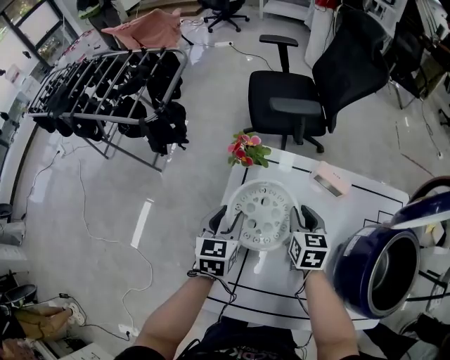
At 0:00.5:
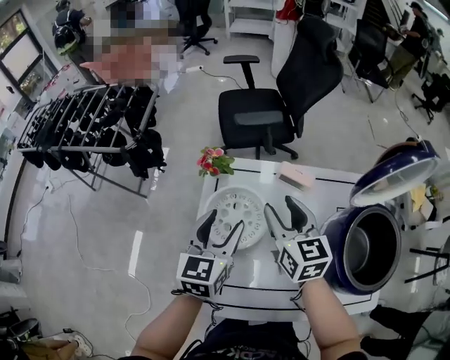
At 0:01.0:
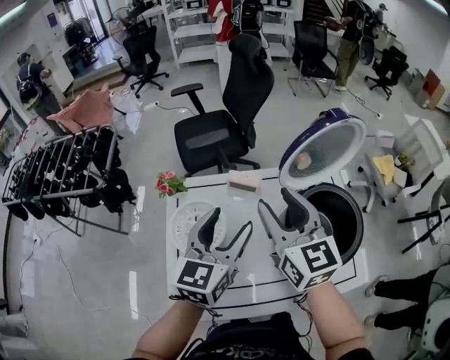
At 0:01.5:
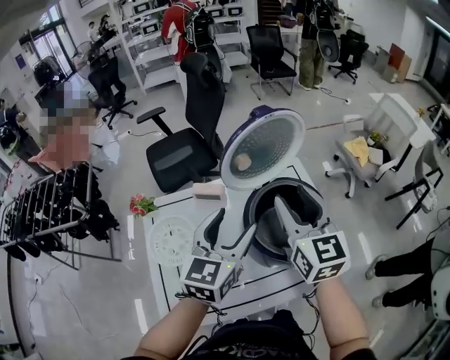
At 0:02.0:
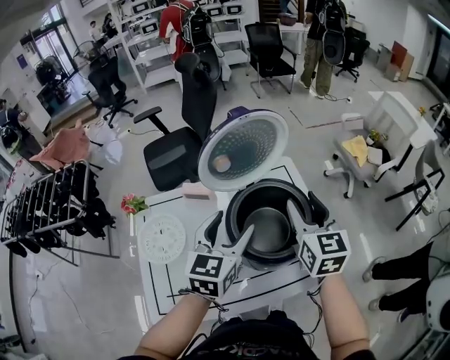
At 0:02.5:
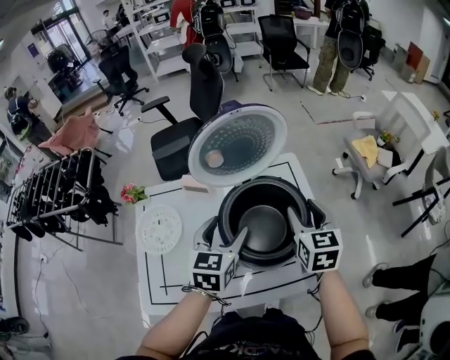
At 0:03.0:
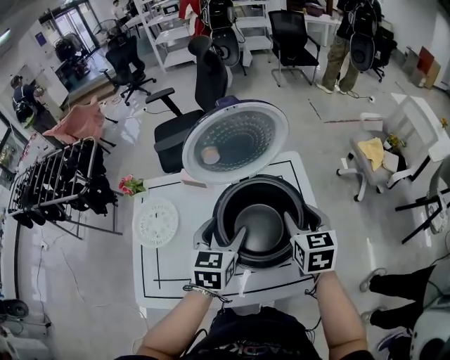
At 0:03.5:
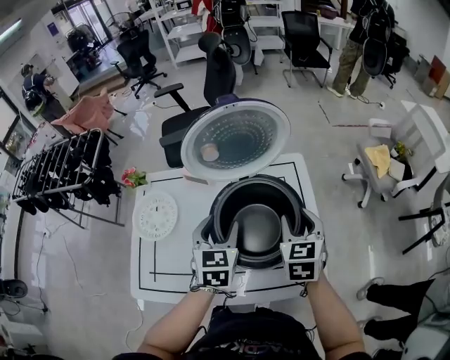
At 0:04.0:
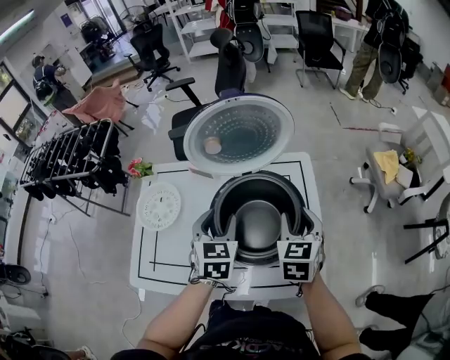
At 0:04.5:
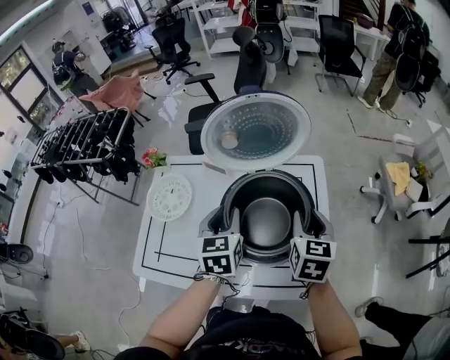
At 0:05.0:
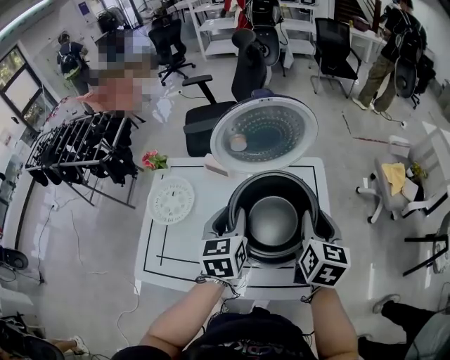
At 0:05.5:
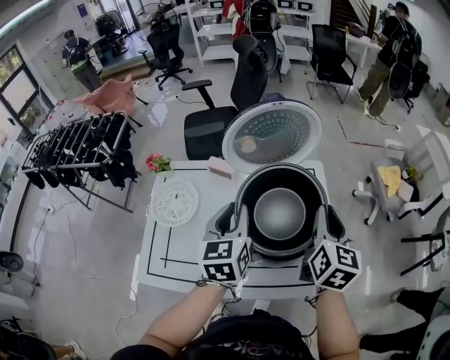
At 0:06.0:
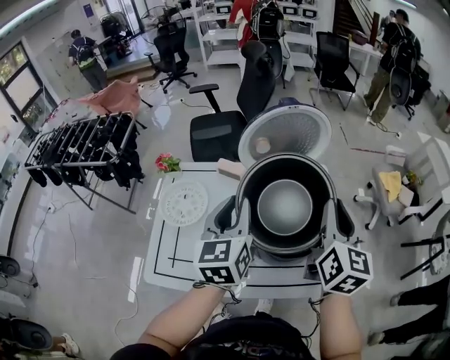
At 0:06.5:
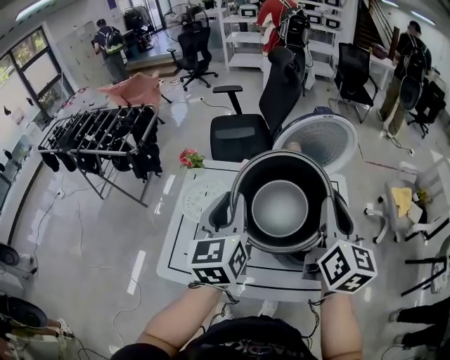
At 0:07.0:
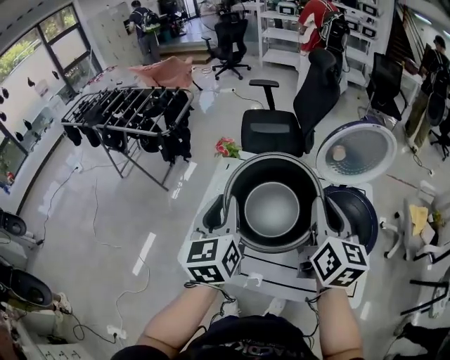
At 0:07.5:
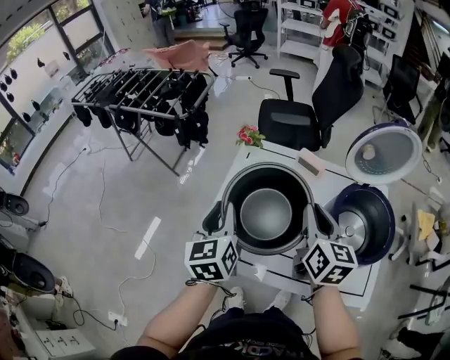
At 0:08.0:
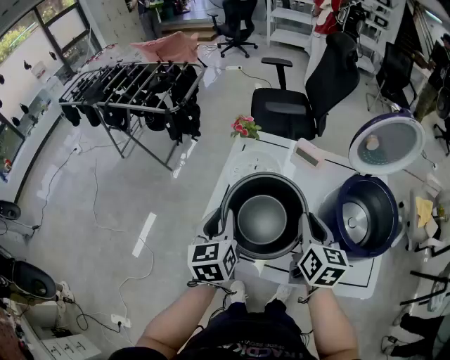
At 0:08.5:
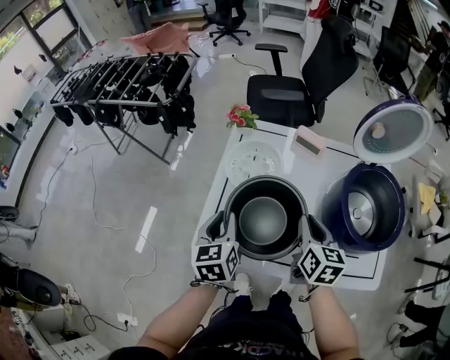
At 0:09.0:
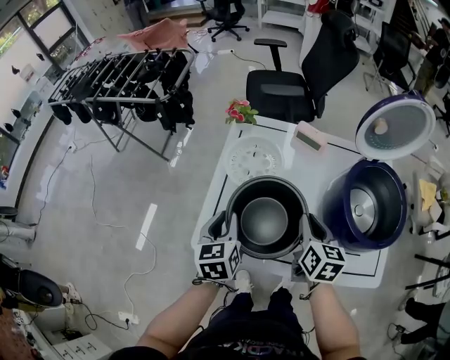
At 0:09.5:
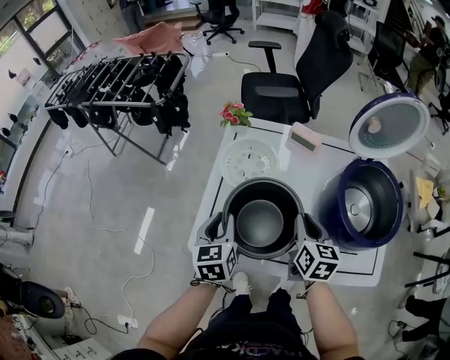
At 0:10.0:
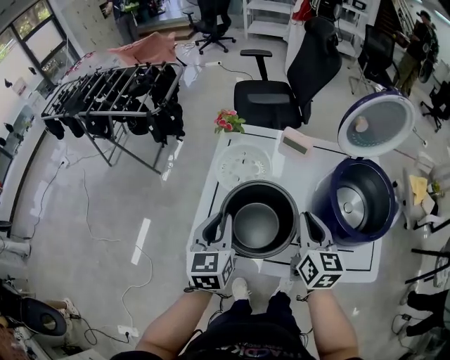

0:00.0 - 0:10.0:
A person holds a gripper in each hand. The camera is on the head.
0:00.0 - 0:02.0: The pair of grippers is taken about 40 cm. The left gripper swivels approximately 40 degrees, and opens. Meanwhile the right gripper rotates roughly 30 degrees, and opens up.
0:02.0 - 0:04.0: Both grippers travel together downward, roughly 10 cm. The left gripper changes its angle by roughly 30 degrees. Meanwhile the right gripper rotates about 20 degrees.
0:04.0 - 0:06.0: The two grippers go approximately 15 cm upward. The left gripper rotates roughly 30 degrees, and closes, while the right gripper swivels about 30 degrees, and closes its fingers.
0:06.0 - 0:08.0: The left gripper moves about 35 cm, and turns by approximately 20 degrees, while the right gripper moves approximately 35 cm, and swivels roughly 30 degrees.
0:08.0 - 0:10.0: The left gripper goes downward and returns, roughly 10 cm each way. The right gripper reaches approximately 10 cm downward, then returns.

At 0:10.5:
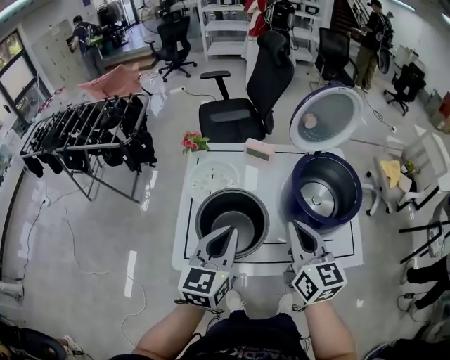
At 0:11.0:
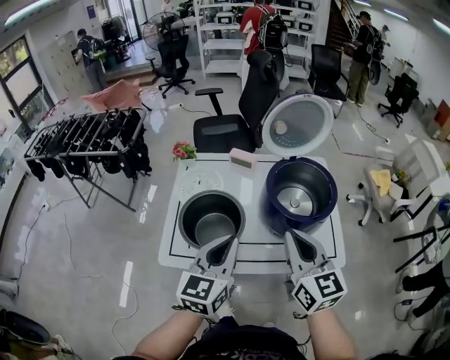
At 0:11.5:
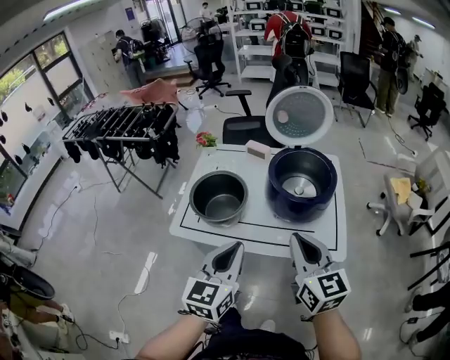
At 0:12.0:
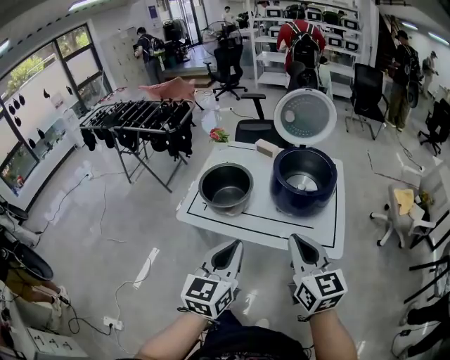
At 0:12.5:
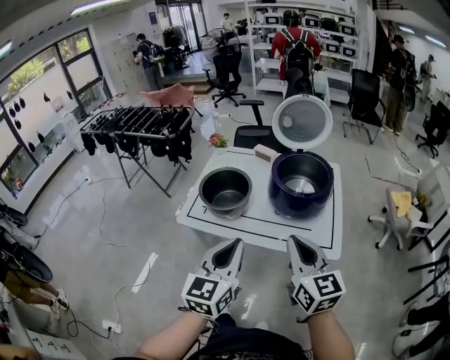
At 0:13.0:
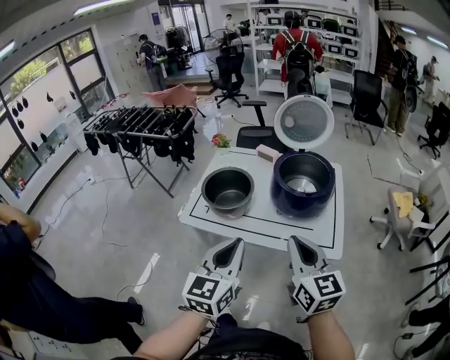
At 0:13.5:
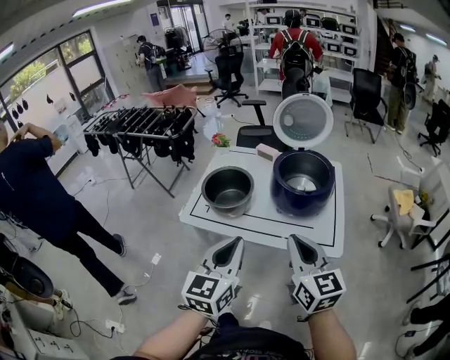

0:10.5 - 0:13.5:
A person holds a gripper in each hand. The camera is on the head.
0:10.5 - 0:12.0: The two grippers go some 30 cm backward and to the right.
0:12.0 - 0:13.5: The grippers make only small movements.

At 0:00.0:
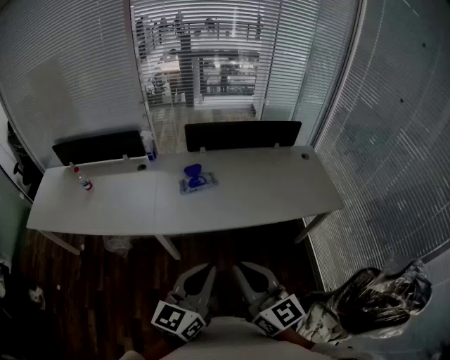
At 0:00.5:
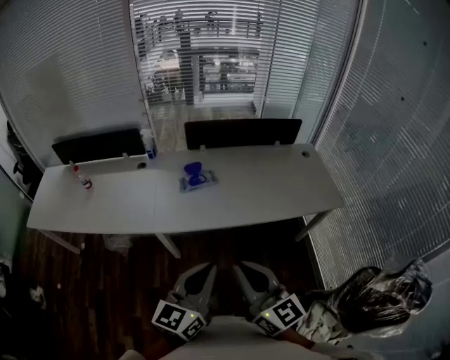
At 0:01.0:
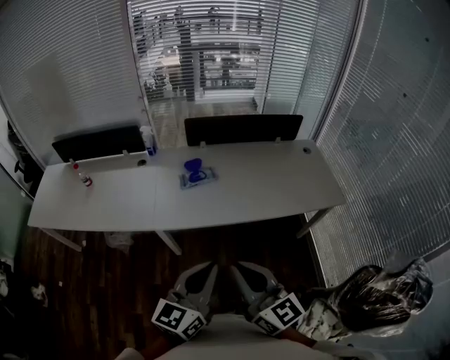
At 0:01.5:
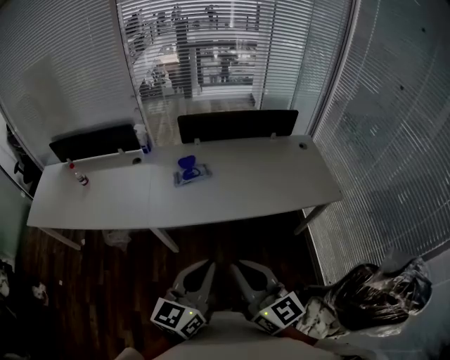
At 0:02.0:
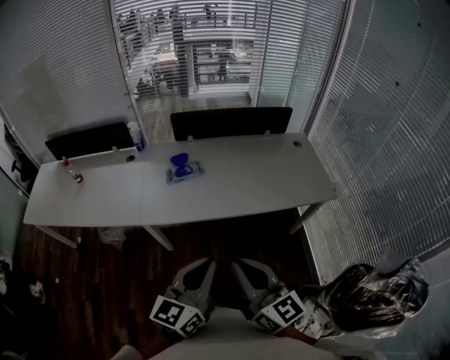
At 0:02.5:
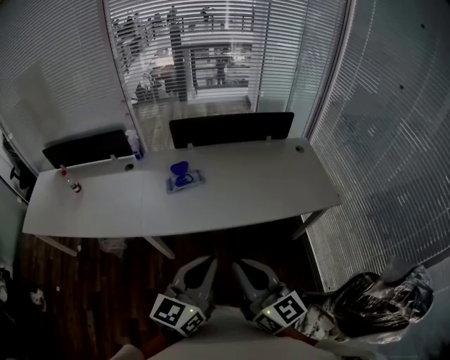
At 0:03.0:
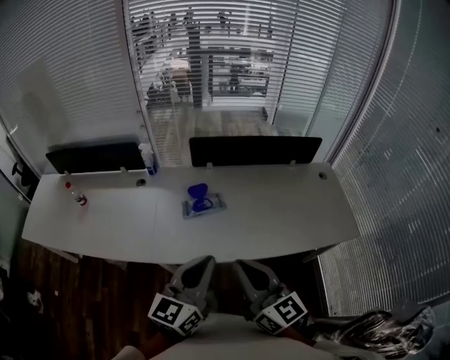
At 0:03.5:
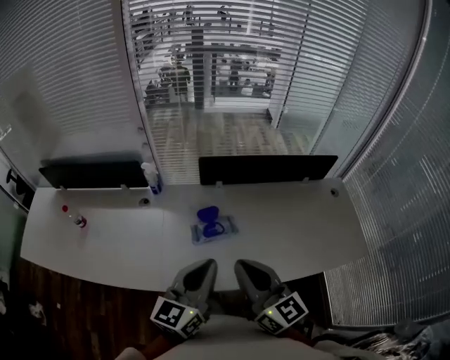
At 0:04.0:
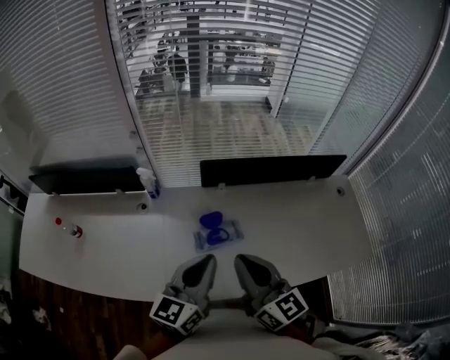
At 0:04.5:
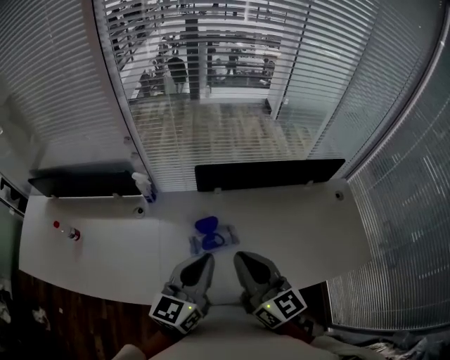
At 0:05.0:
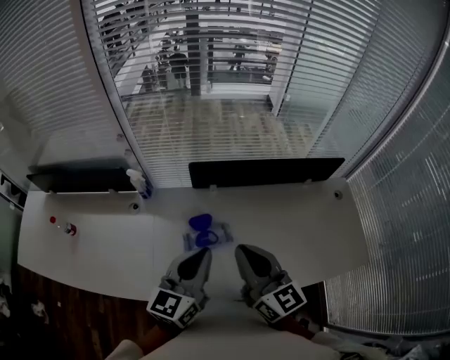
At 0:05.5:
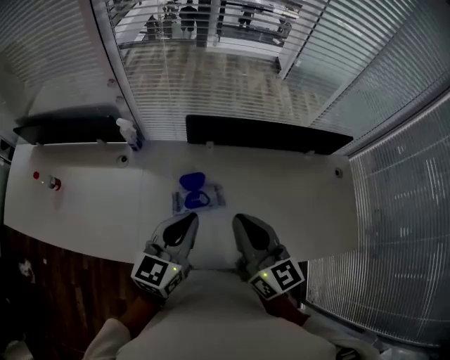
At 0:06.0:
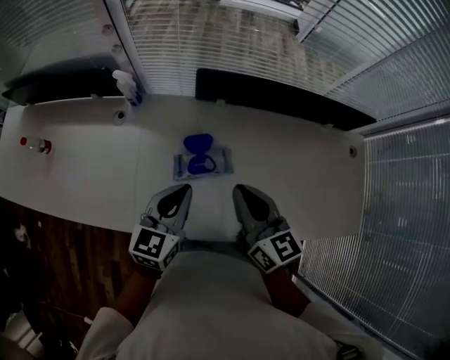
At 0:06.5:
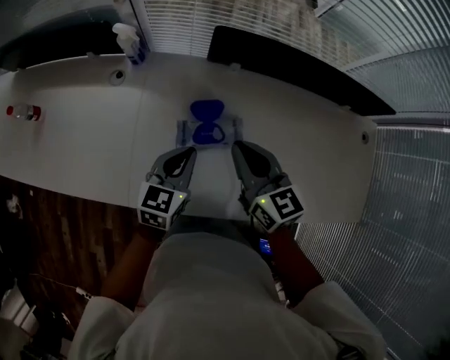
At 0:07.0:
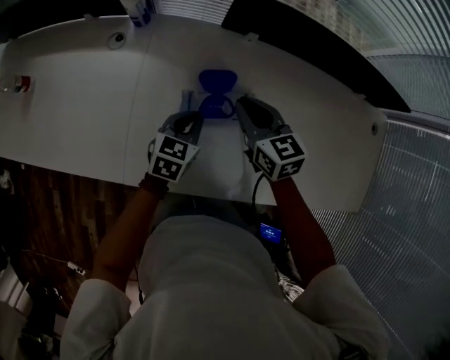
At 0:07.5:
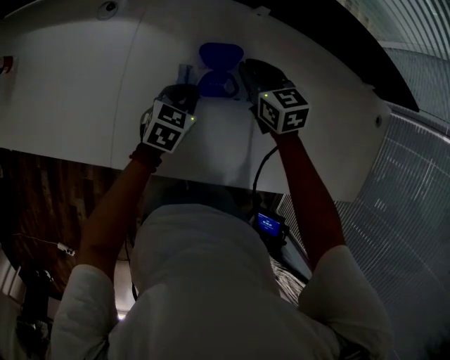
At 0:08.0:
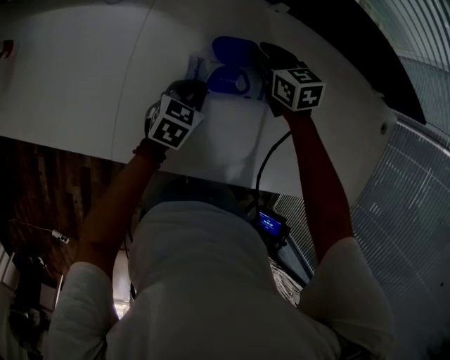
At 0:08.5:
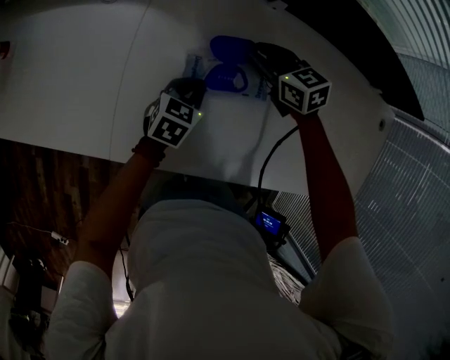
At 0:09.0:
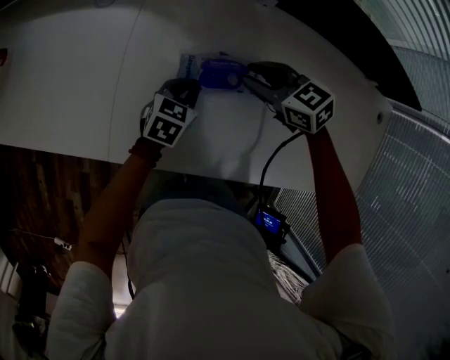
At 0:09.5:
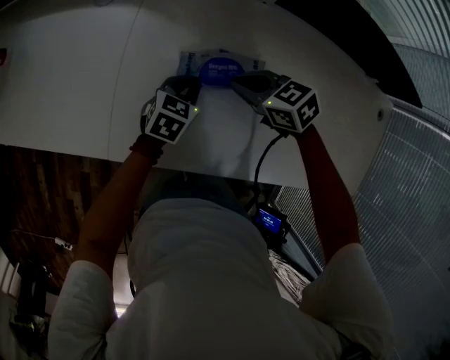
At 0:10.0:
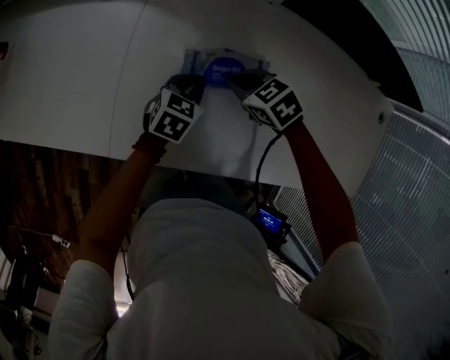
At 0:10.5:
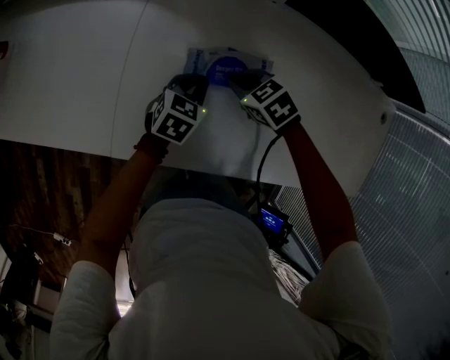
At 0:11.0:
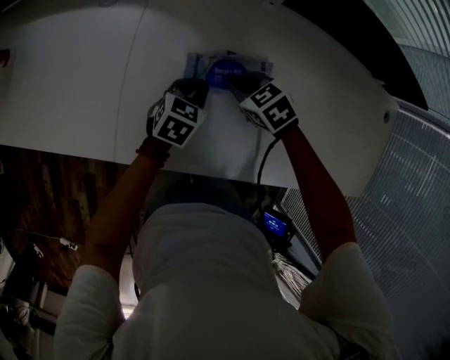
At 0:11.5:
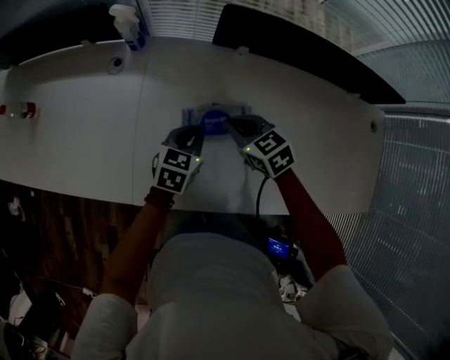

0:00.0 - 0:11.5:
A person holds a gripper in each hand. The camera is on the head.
0:00.0 - 0:02.0: The grippers both shift to the right by approximately 10 cm.
0:02.0 - 0:04.0: The two grippers travel together, forward and to the left, some 50 cm.
0:04.0 - 0:06.0: The left gripper travels downward and forward by approximately 15 cm. Meanwhile the right gripper is displaced downward, forward and to the right by some 15 cm.
0:06.0 - 0:07.5: The right gripper is displaced downward and forward by approximately 30 cm, and rotates some 30 degrees; the left gripper shifts some 25 cm downward, and turns by some 30 degrees.
0:07.5 - 0:09.5: The right gripper shifts some 10 cm backward, and rotates some 30 degrees.
0:09.5 - 0:11.5: The right gripper changes its angle by approximately 20 degrees; the left gripper heads upward, covering roughly 10 cm.

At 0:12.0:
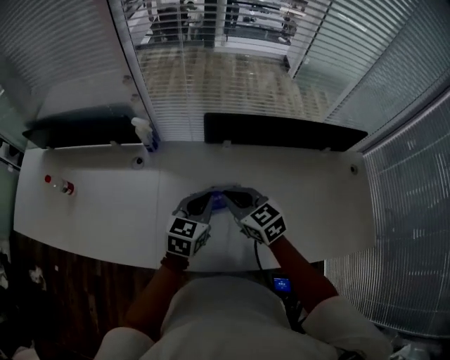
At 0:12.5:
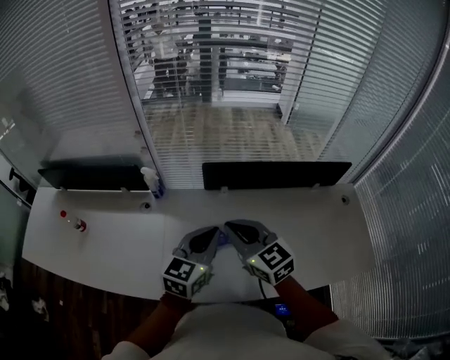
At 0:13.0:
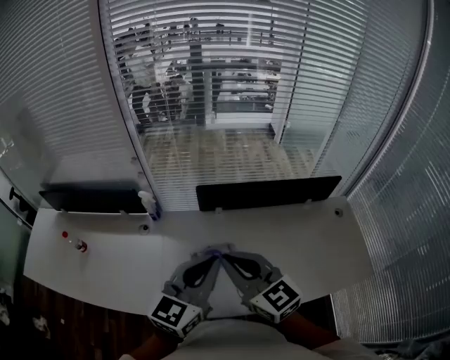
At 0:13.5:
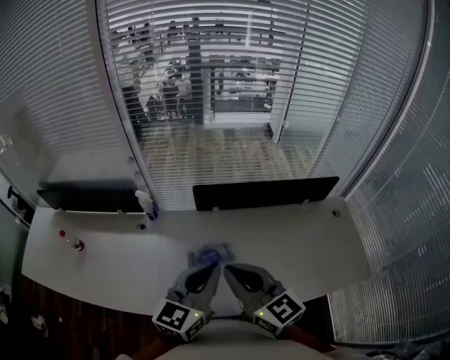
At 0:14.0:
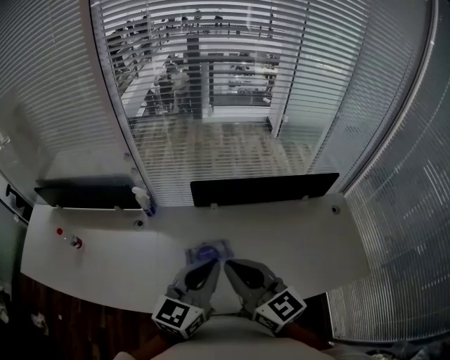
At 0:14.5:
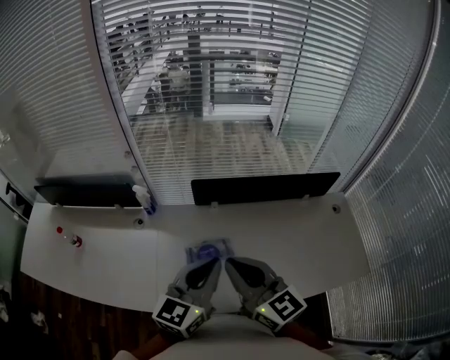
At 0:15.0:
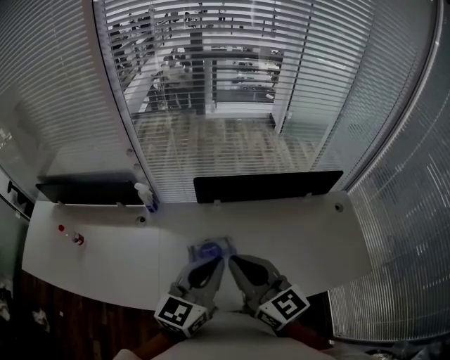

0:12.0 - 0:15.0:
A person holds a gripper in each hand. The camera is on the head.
0:12.0 - 0:13.5: The two grippers go some 25 cm upward and backward. The right gripper changes its angle by some 30 degrees, while the left gripper swivels about 20 degrees.
0:13.5 - 0:15.0: The grippers make only small movements.
